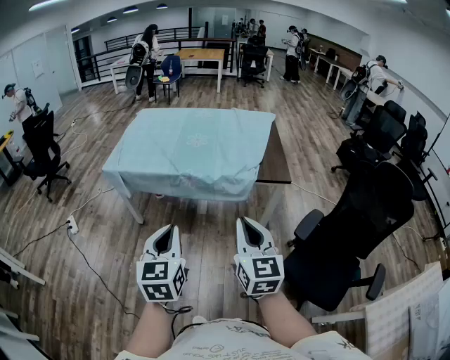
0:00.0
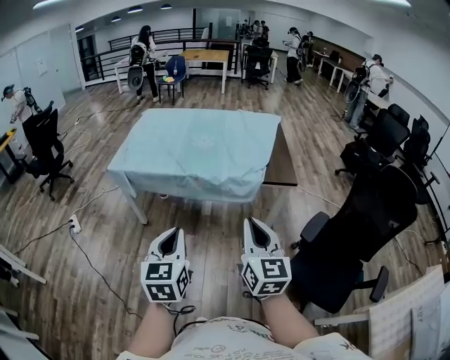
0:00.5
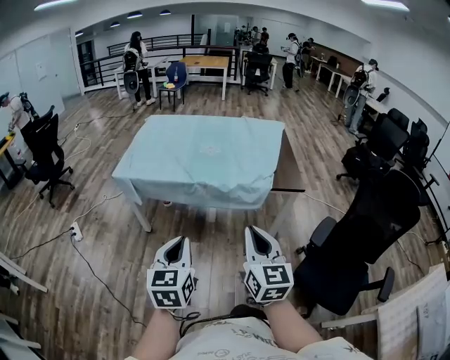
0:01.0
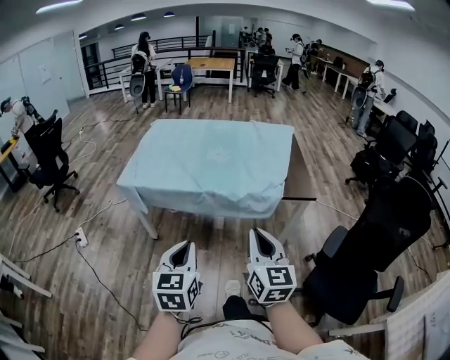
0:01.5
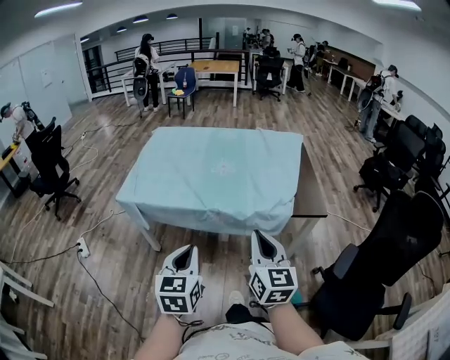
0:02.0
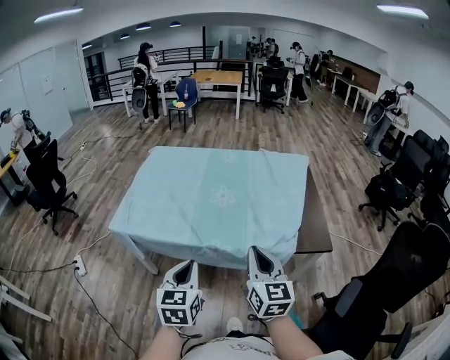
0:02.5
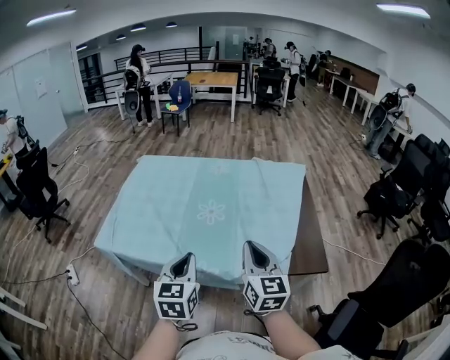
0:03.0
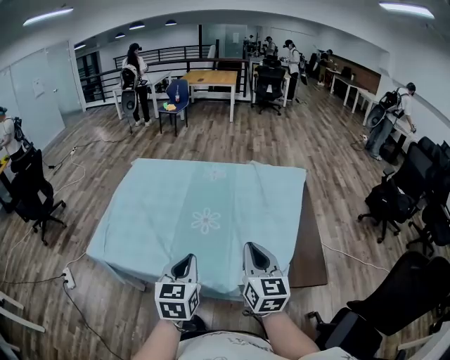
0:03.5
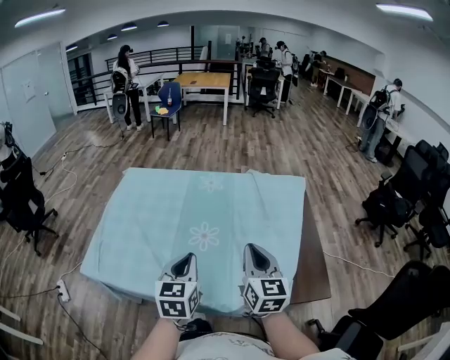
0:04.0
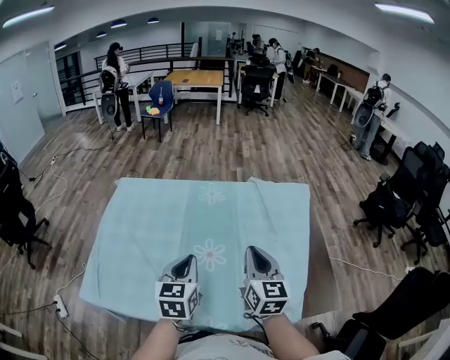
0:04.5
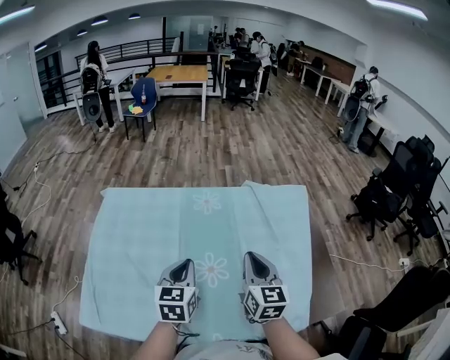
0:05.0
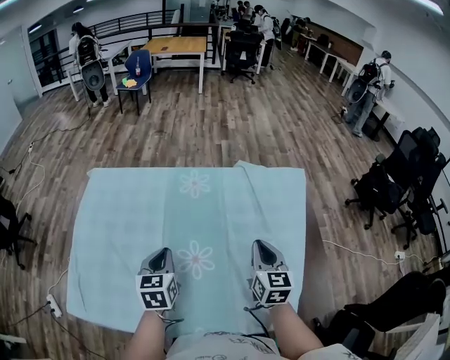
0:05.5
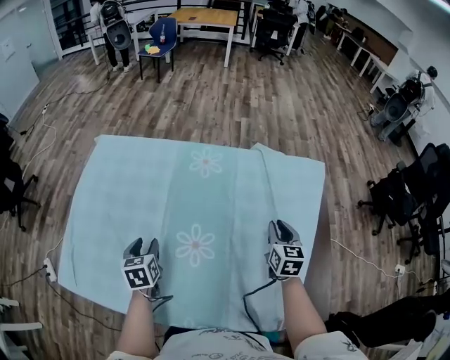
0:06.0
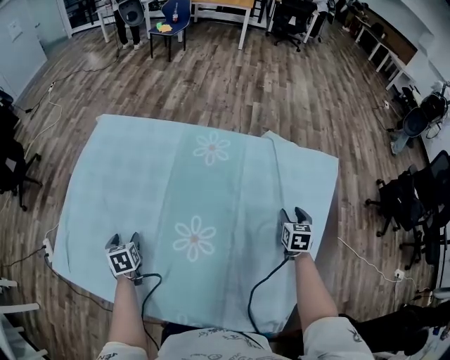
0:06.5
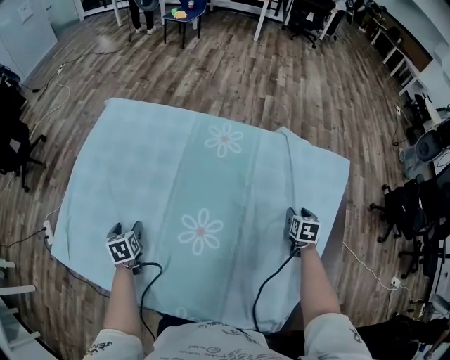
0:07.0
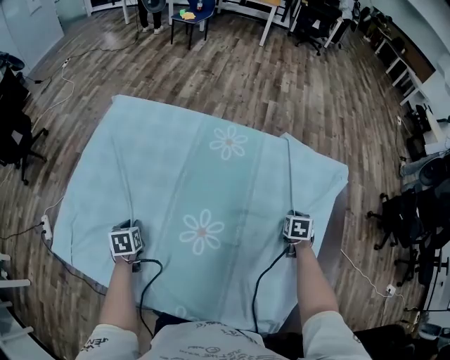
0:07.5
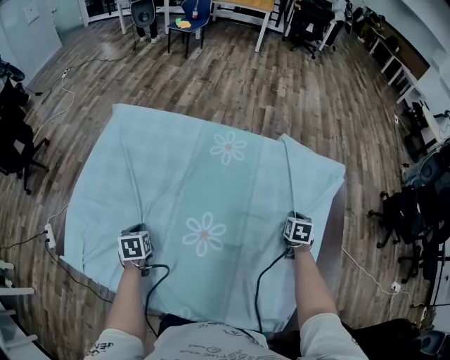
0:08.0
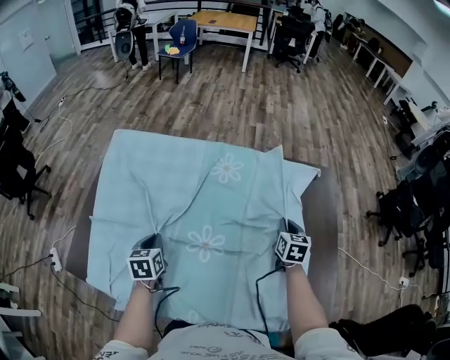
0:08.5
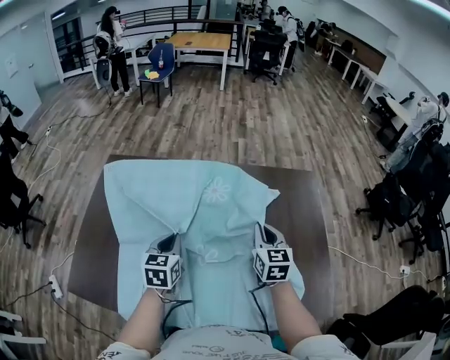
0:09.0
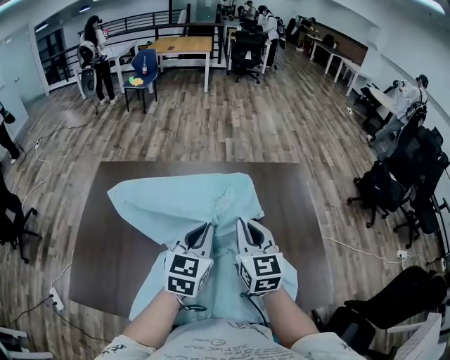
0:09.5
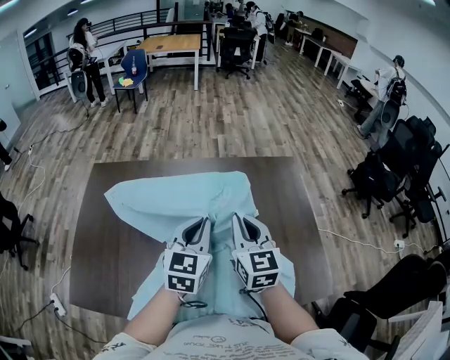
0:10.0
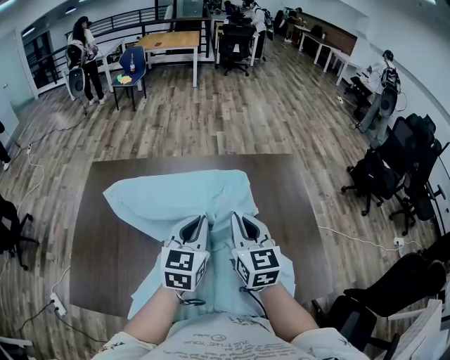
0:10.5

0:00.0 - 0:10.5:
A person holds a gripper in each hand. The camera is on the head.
0:00.0 - 0:02.0: Both grippers travel together forward and to the left, some 20 cm.
0:02.0 - 0:04.0: The two grippers travel together, forward, approximately 40 cm.
0:04.0 - 0:06.5: The right gripper shifts about 50 cm forward, downward and to the right, angles its fingers downward, by some 40 degrees, and opens its fingers. The left gripper moves downward, to the left and forward, approximately 40 cm, points its fingers some 30 degrees further downward, and opens its fingers.
0:06.5 - 0:08.5: The right gripper goes some 10 cm to the left and upward, and closes its fingers. Meanwhile the left gripper shifts some 10 cm upward and to the right, and closes.
0:08.5 - 0:10.5: The left gripper is displaced upward and to the right by about 30 cm, and rotates some 40 degrees; the right gripper is displaced upward, to the left and backward by roughly 25 cm, and swivels some 30 degrees.

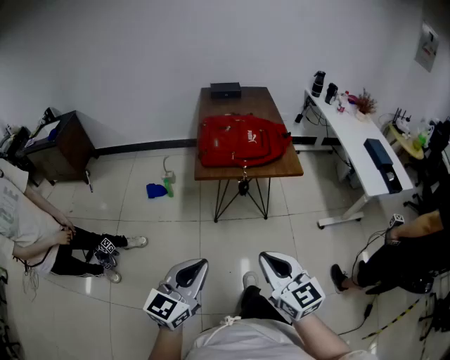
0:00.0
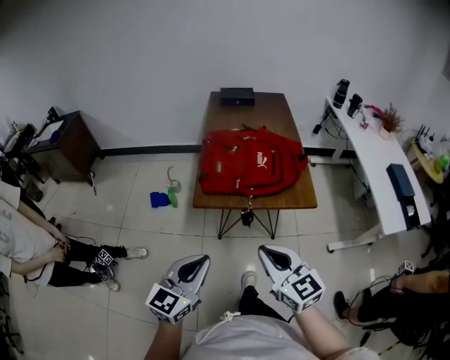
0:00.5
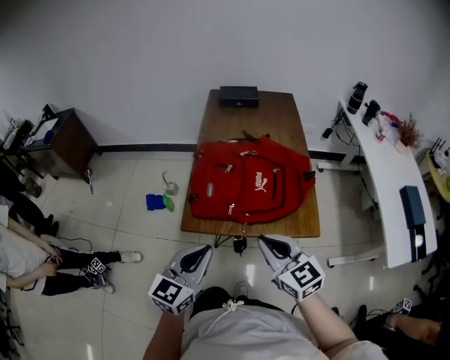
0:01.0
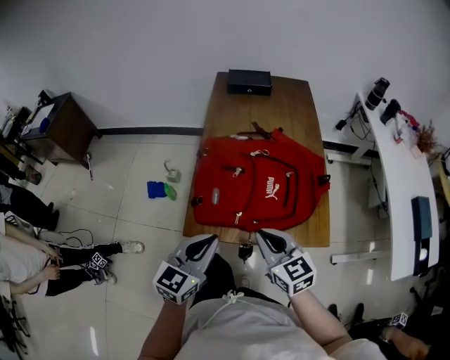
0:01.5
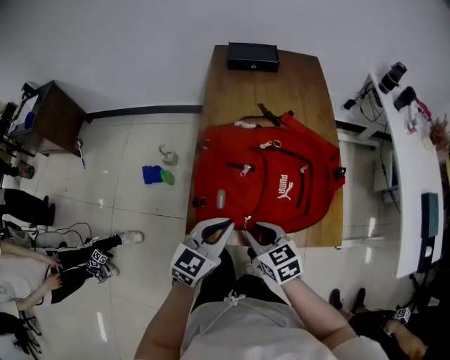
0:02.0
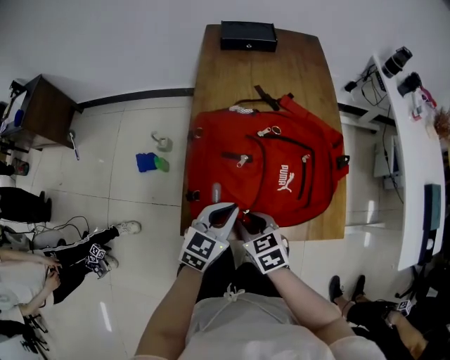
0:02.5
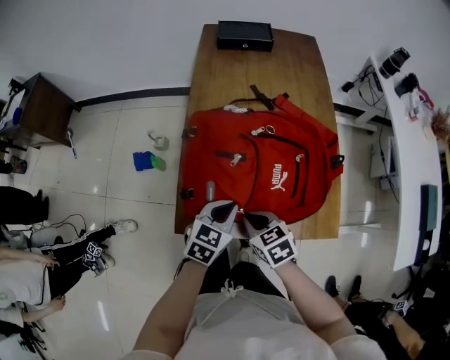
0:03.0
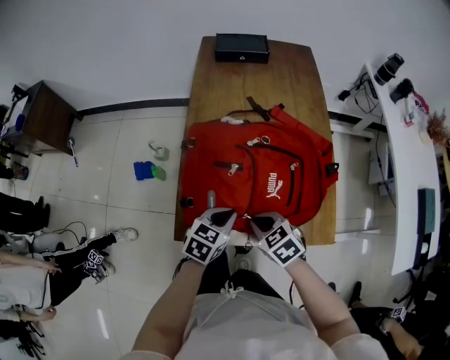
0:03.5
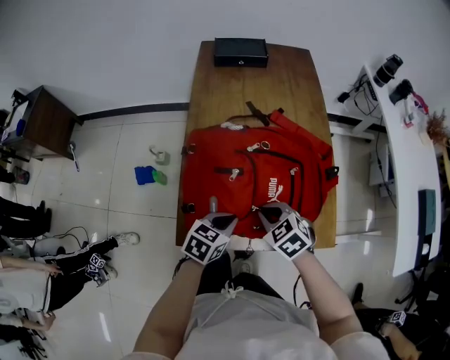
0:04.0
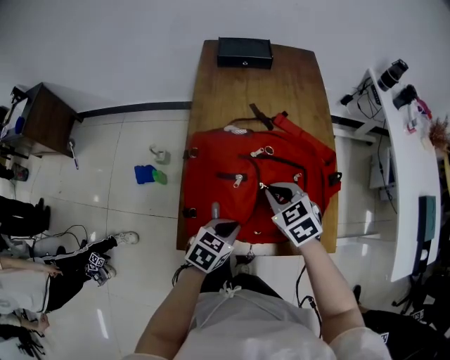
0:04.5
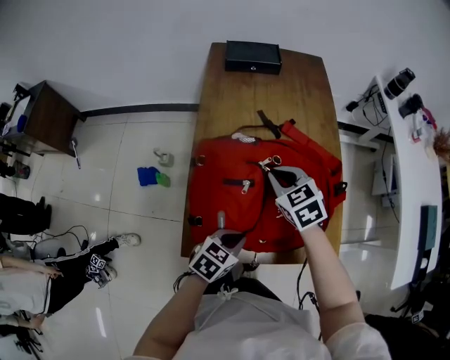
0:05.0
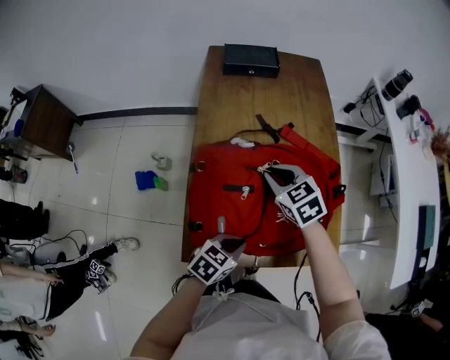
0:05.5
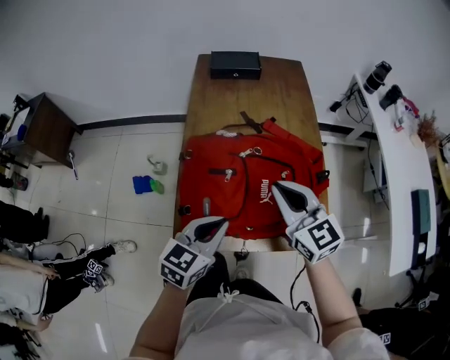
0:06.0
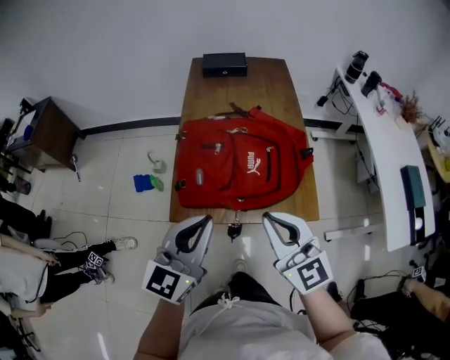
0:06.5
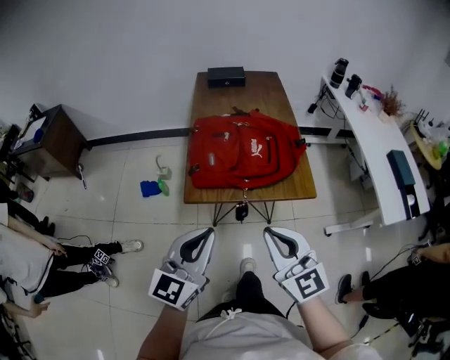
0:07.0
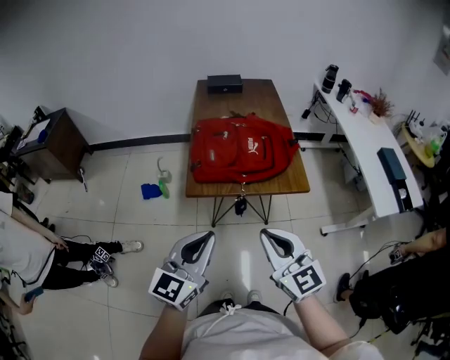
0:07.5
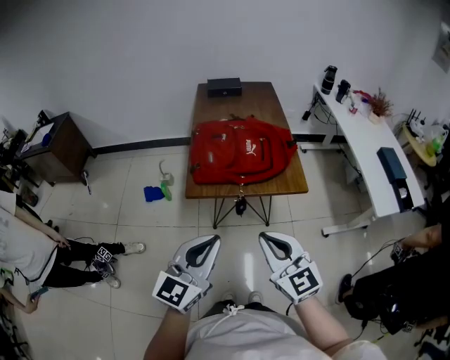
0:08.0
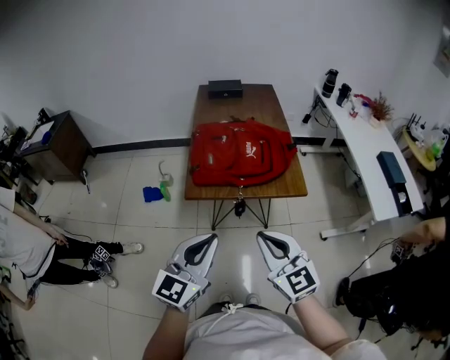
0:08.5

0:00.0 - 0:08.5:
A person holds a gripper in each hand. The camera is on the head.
0:00.0 - 0:02.0: The two grippers travel together, forward, about 60 cm. The right gripper turns by roughly 30 degrees.
0:02.0 - 0:04.0: The right gripper travels forward and to the right by approximately 10 cm, and rotates approximately 20 degrees. The left gripper shifts some 10 cm downward, and rotates some 30 degrees.
0:04.0 - 0:06.5: Both grippers travel together upward and backward, roughly 30 cm. The left gripper tilts its fingers approximately 40 degrees upward; the right gripper angles its fingers upward, by some 50 degrees.
0:06.5 - 0:08.5: The two grippers go roughly 25 cm backward.

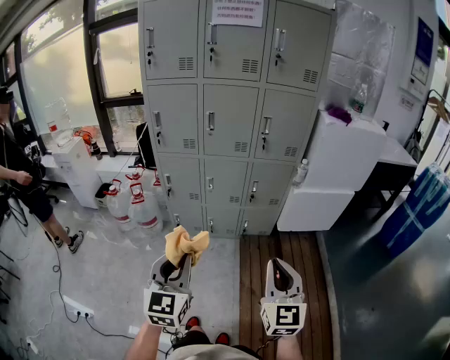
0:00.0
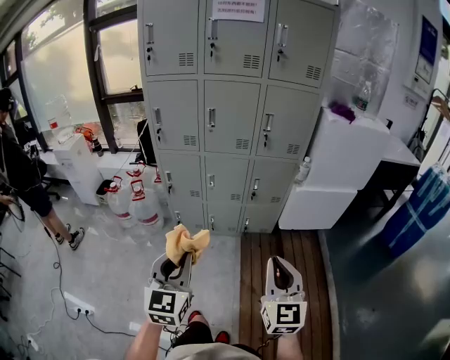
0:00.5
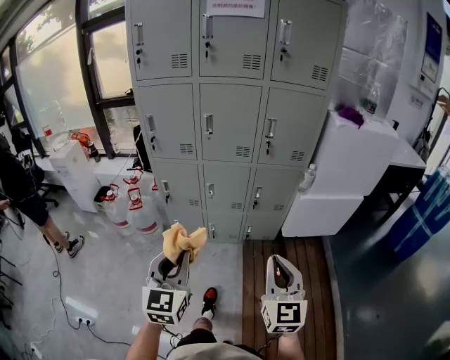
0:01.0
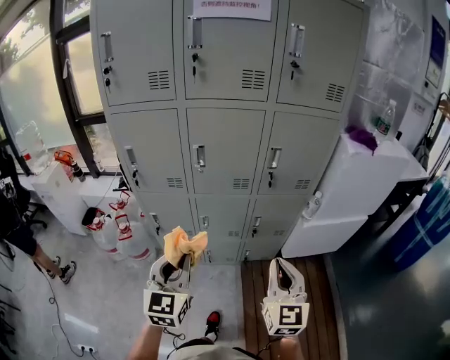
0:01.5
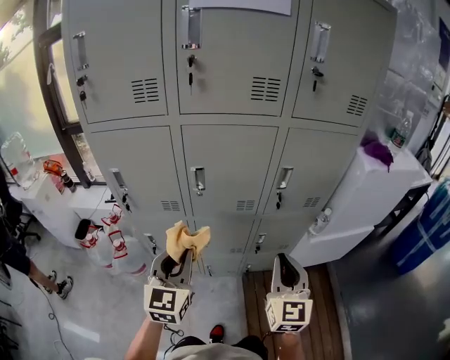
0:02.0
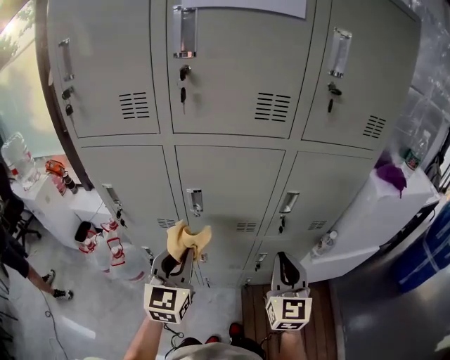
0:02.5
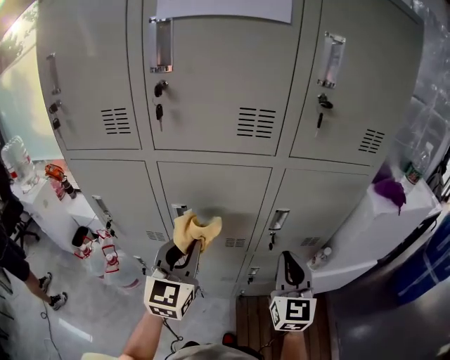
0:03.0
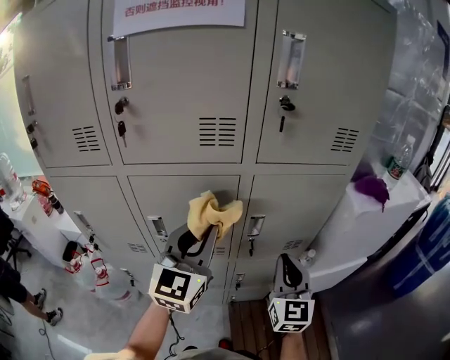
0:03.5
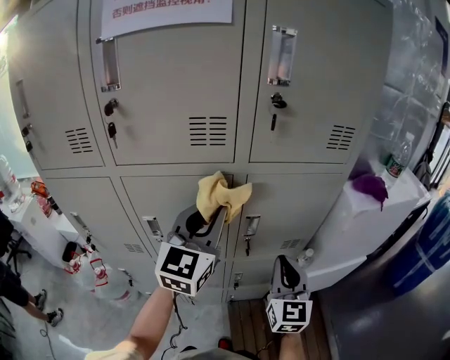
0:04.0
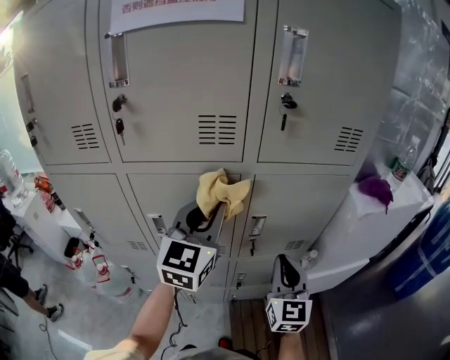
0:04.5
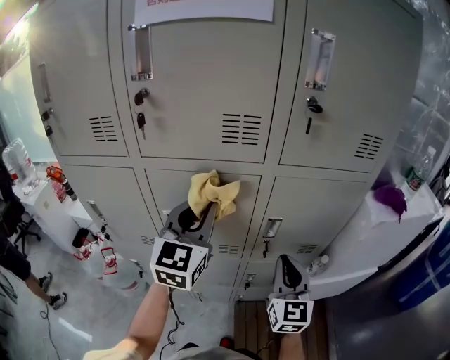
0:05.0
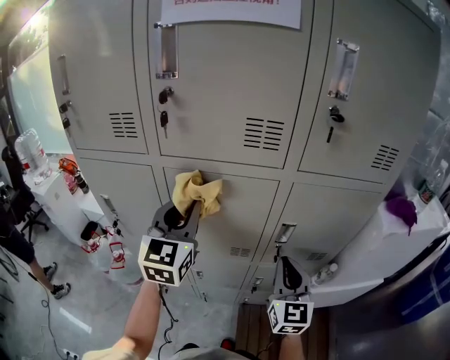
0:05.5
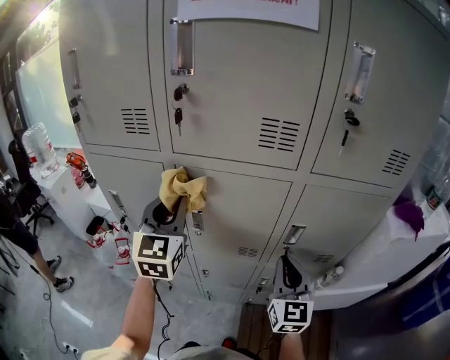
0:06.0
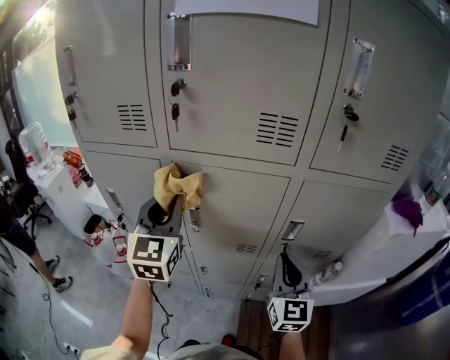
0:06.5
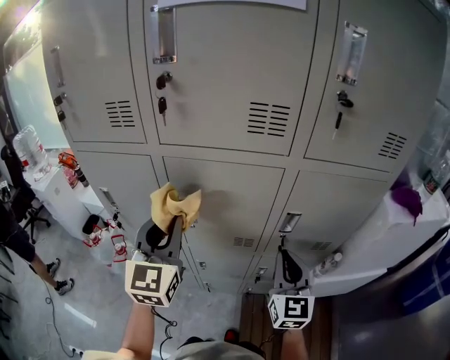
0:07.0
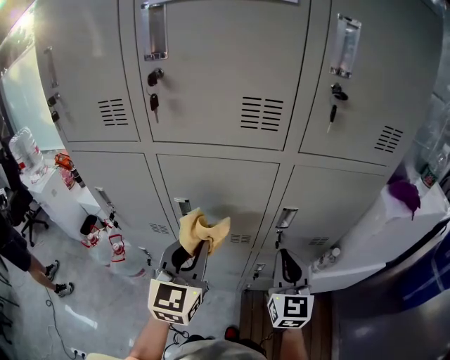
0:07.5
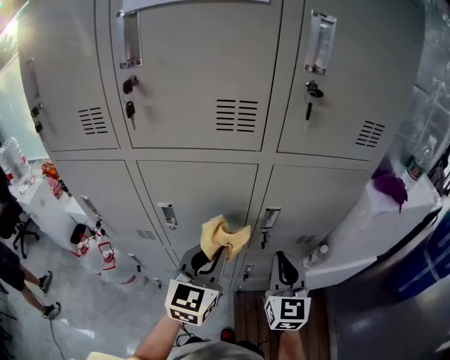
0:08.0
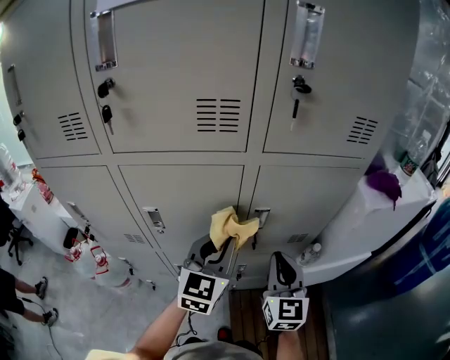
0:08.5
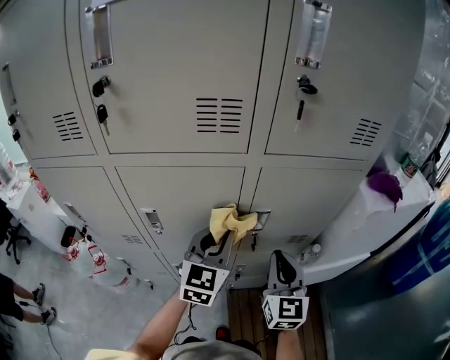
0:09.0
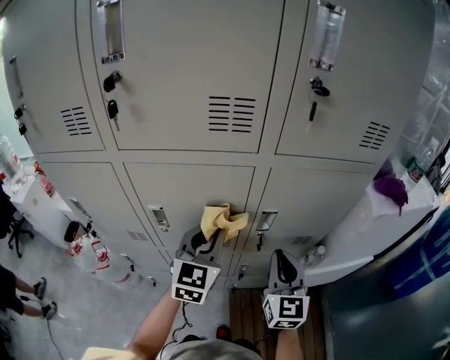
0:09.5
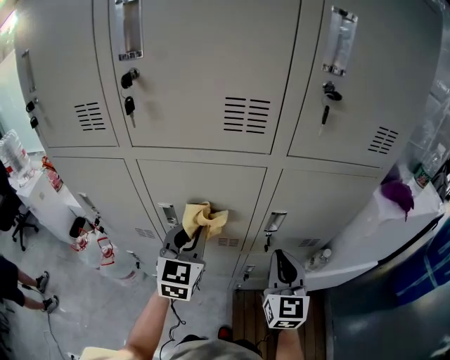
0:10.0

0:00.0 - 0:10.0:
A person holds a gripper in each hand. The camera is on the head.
0:00.0 - 0:02.0: The two grippers travel together, forward, some 40 cm.
0:02.0 - 0:04.0: The left gripper is displaced forward, to the right and upward by about 35 cm, while the right gripper moves forward and to the right, some 20 cm.
0:04.0 - 0:06.0: The left gripper travels to the left by about 20 cm, and turns by approximately 30 degrees. Meanwhile the right gripper goes approximately 10 cm to the left.
0:06.0 - 0:08.0: The left gripper is displaced to the right and downward by about 20 cm, and changes its angle by some 30 degrees. Meanwhile the right gripper changes place by approximately 5 cm.
0:08.0 - 0:10.0: The left gripper goes some 10 cm to the left and forward.
